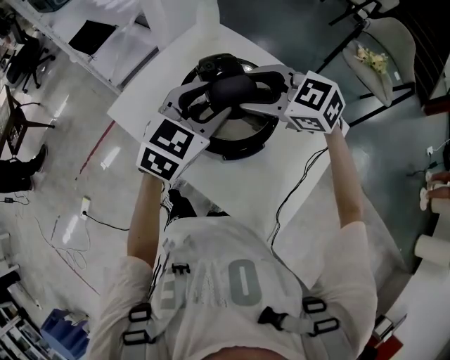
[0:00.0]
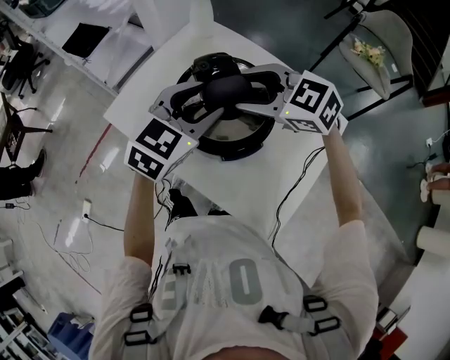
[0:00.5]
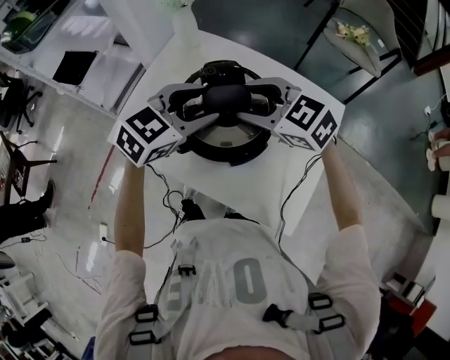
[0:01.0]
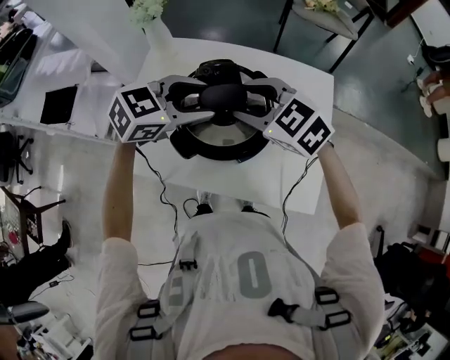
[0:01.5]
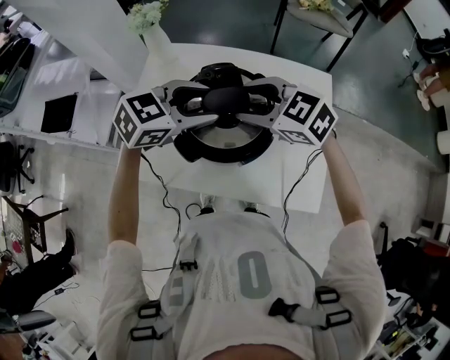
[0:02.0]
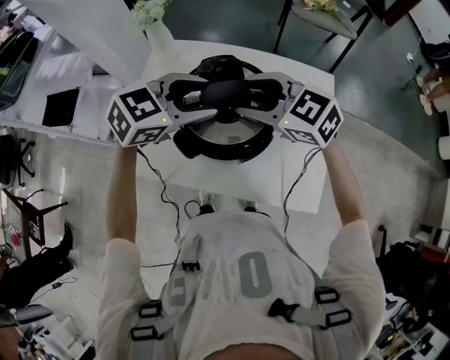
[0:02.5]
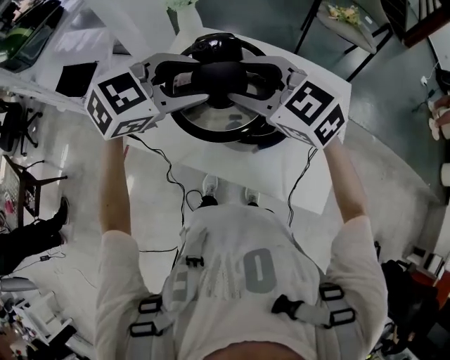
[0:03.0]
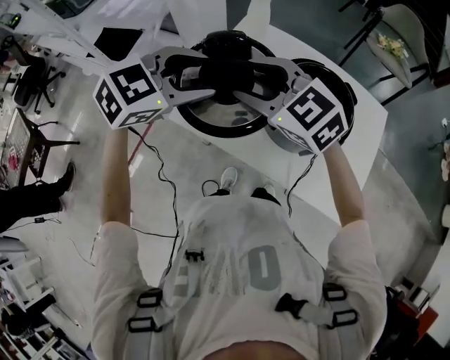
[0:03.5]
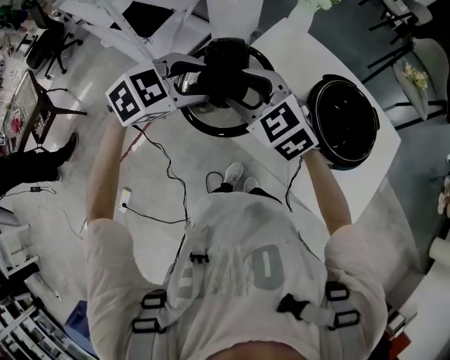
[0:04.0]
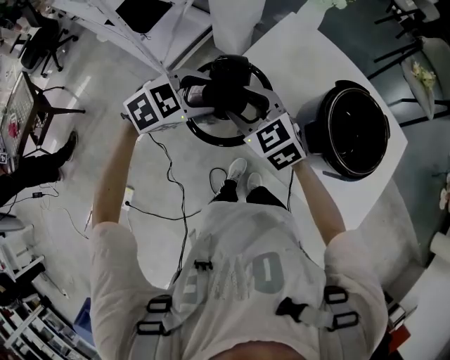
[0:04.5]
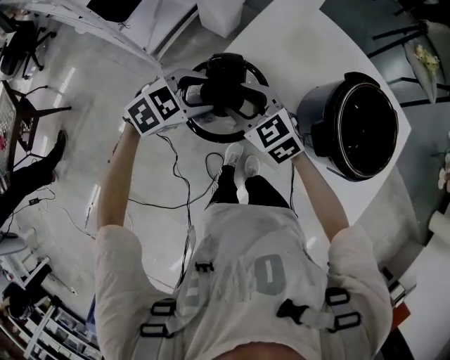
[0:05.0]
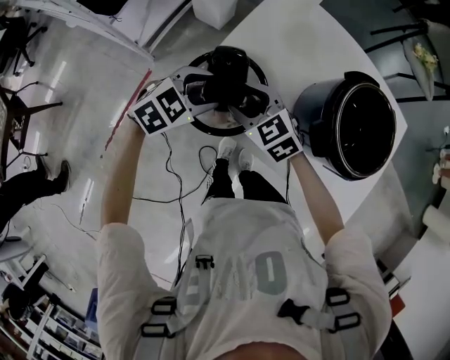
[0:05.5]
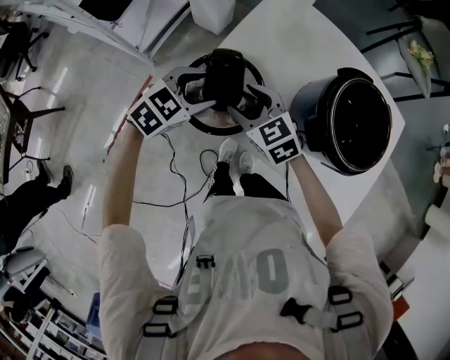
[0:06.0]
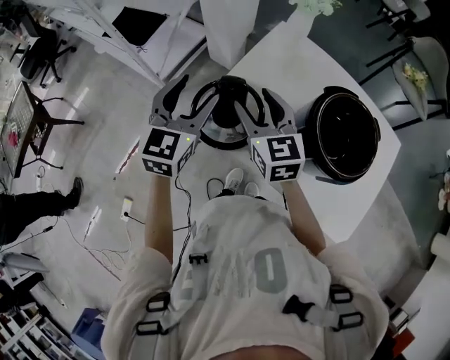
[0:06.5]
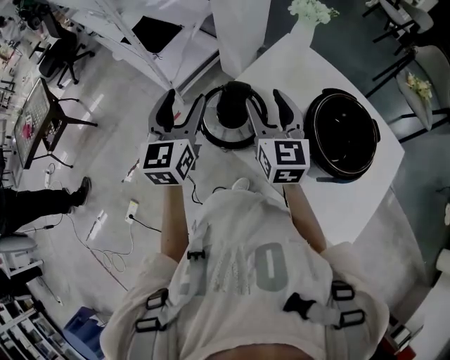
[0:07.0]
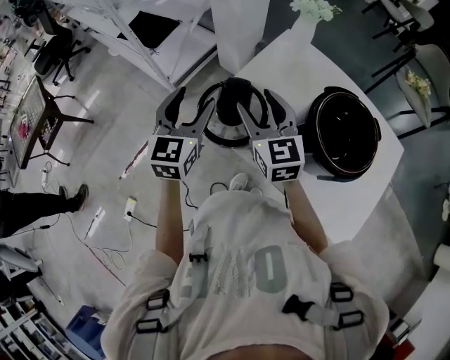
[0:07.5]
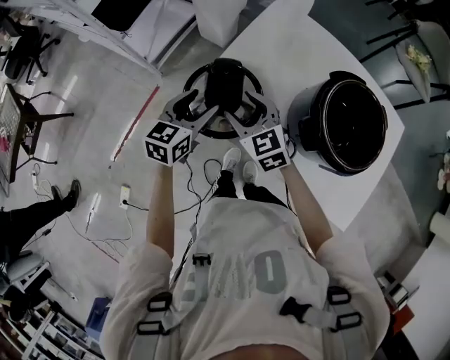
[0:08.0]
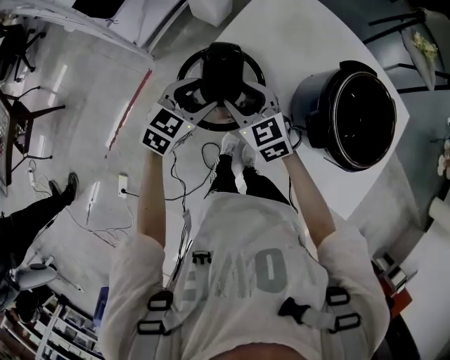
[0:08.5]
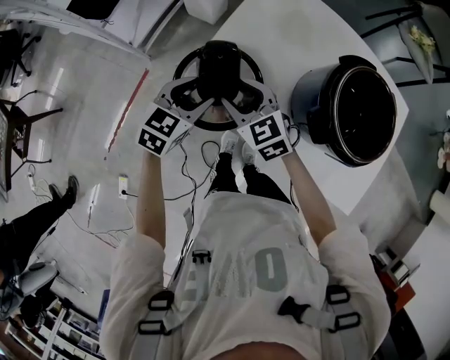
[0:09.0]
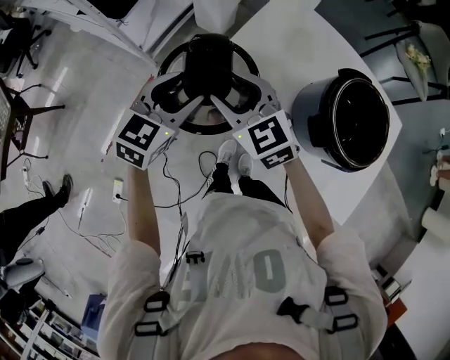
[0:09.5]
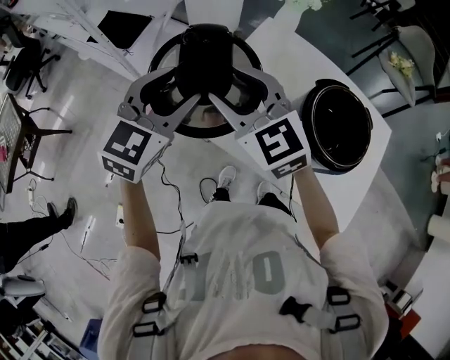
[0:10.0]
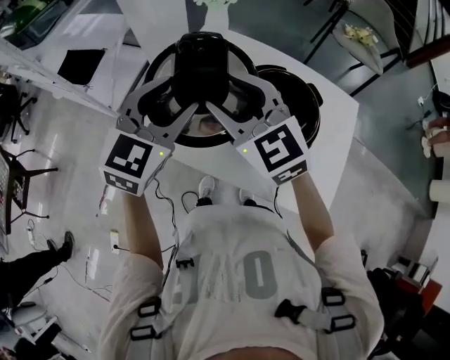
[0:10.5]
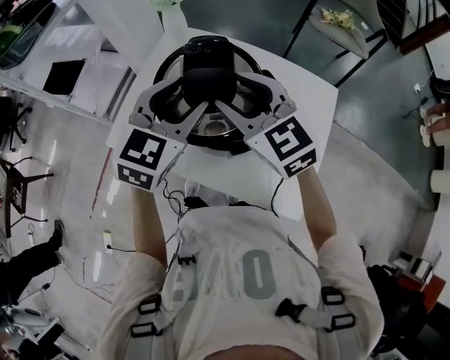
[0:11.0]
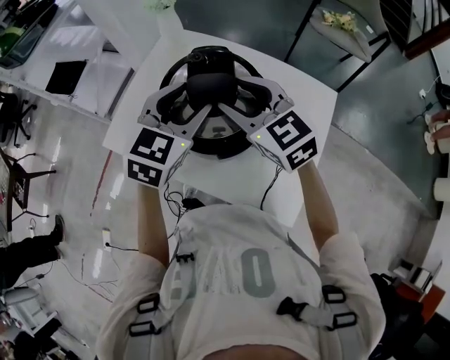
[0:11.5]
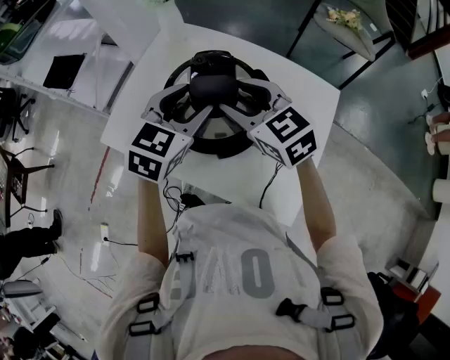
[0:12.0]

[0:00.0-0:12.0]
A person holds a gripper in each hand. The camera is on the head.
0:00.0 to 0:02.0: The left gripper swivels approximately 50 degrees. The right gripper changes its angle by roughly 30 degrees.
0:02.0 to 0:04.0: The left gripper reaches approximately 5 cm upward, then returns, and turns by some 30 degrees, while the right gripper travels upward and back again, about 5 cm each way.
0:04.0 to 0:06.0: The grippers both shift downward by approximately 15 cm. The right gripper changes its angle by about 20 degrees.
0:06.0 to 0:08.0: The right gripper reaches roughly 20 cm upward, then returns. The left gripper moves roughly 20 cm upward and comes back, and rotates roughly 40 degrees.
0:08.0 to 0:10.0: The grippers both shift upward by some 20 cm. The left gripper turns by about 30 degrees.
0:10.0 to 0:12.0: The grippers both shift to the right by approximately 40 cm.

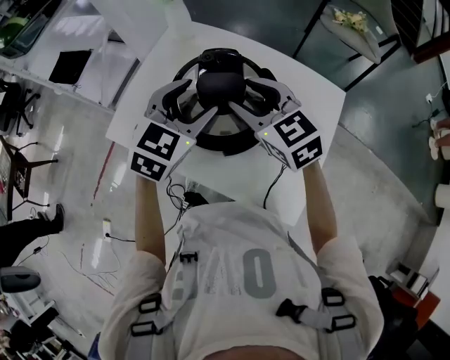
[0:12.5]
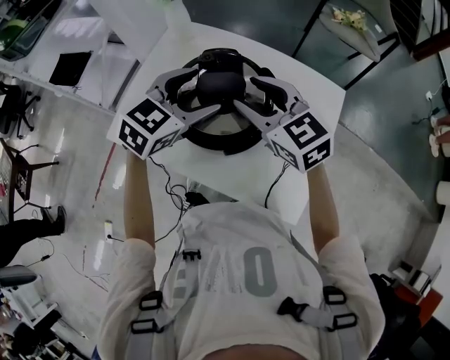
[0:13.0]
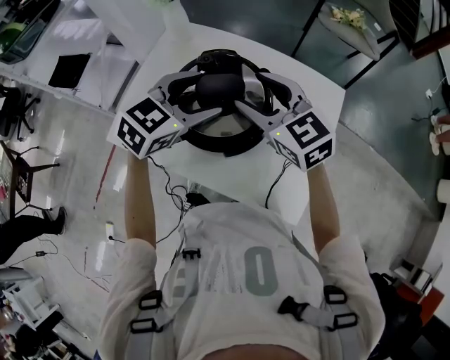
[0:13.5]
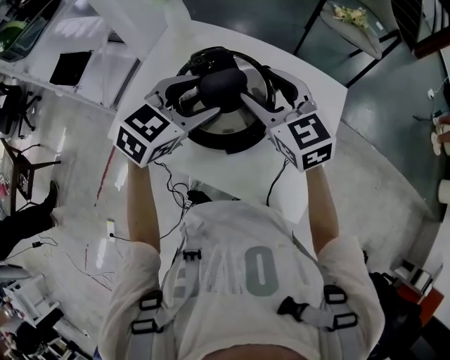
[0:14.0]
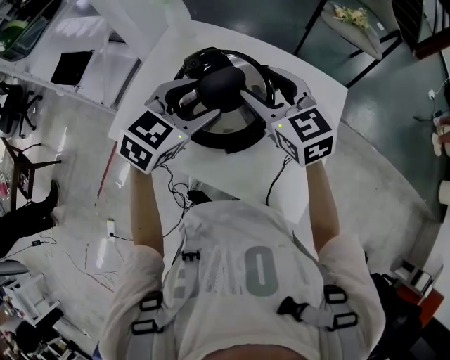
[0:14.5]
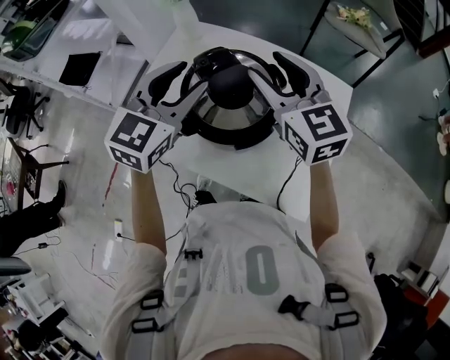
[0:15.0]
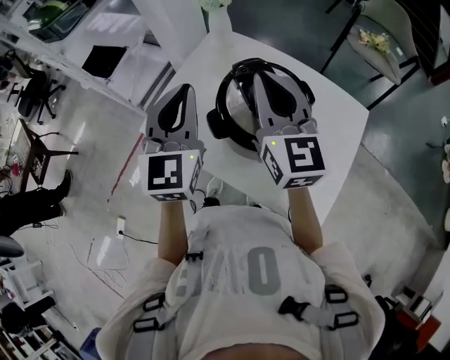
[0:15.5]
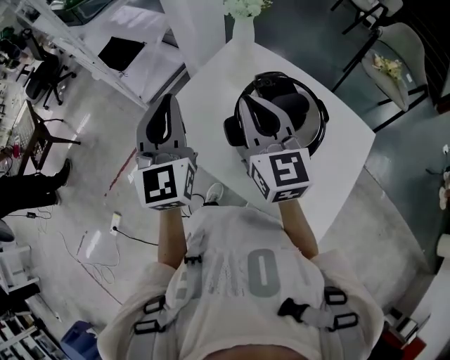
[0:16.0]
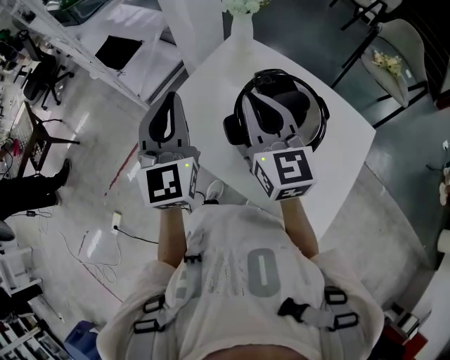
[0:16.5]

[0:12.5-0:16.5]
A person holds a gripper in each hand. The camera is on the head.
0:12.5 to 0:14.5: The grippers stay close to where they were, moving slightly.
0:14.5 to 0:16.5: The left gripper changes place by about 25 cm, points its fingers some 40 degrees further upward, and closes its fingers. Meanwhile the right gripper moves some 20 cm, and closes up.

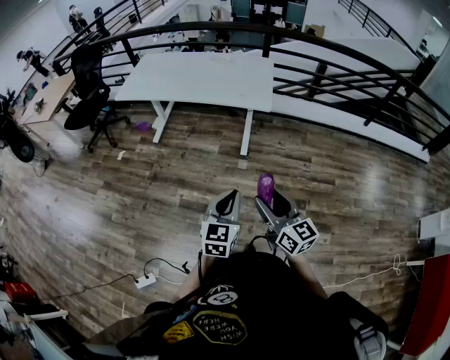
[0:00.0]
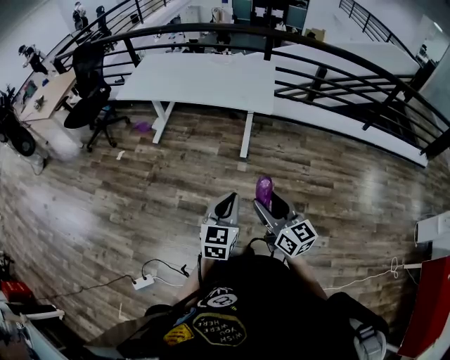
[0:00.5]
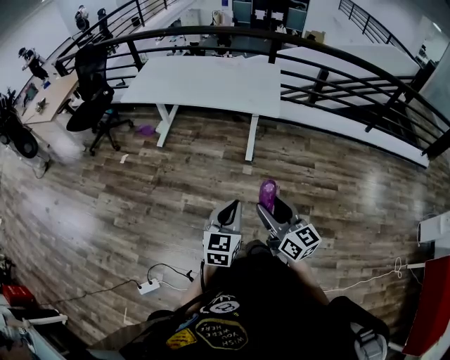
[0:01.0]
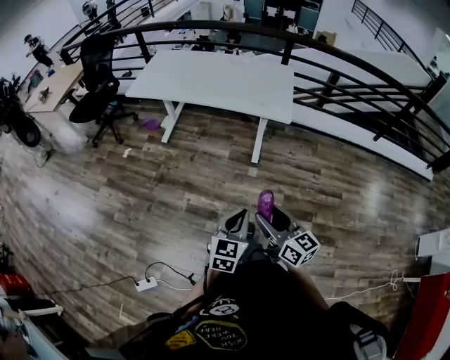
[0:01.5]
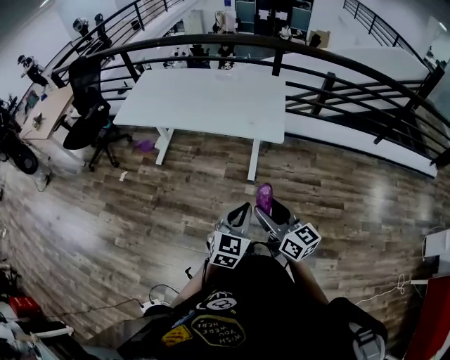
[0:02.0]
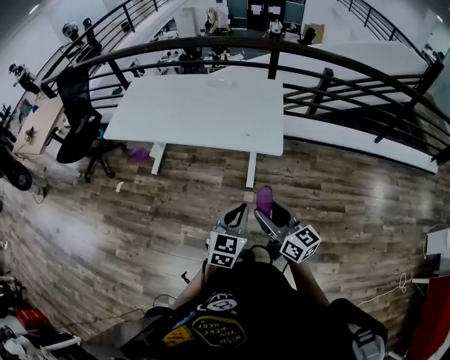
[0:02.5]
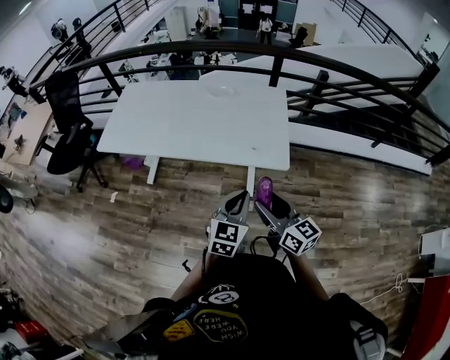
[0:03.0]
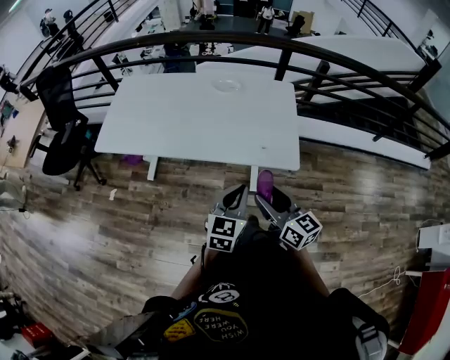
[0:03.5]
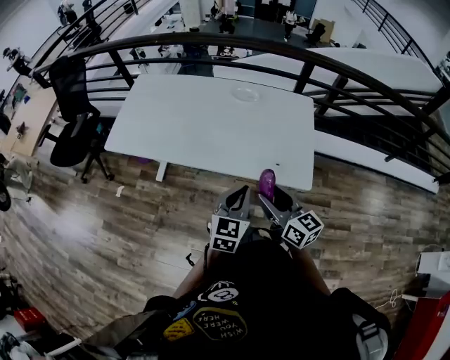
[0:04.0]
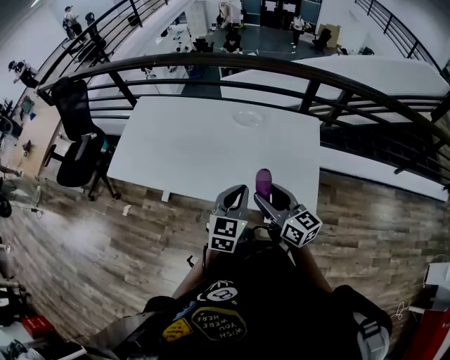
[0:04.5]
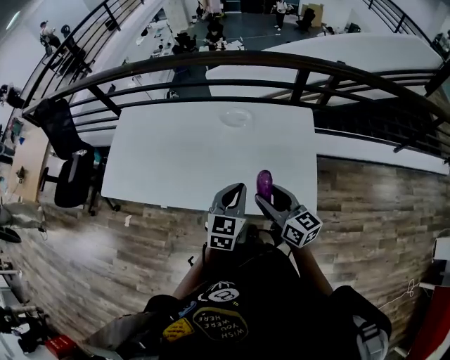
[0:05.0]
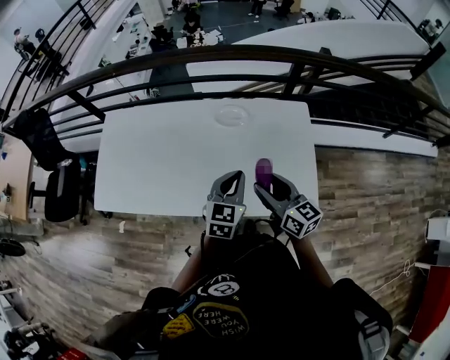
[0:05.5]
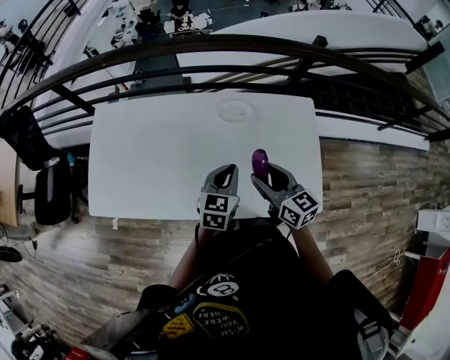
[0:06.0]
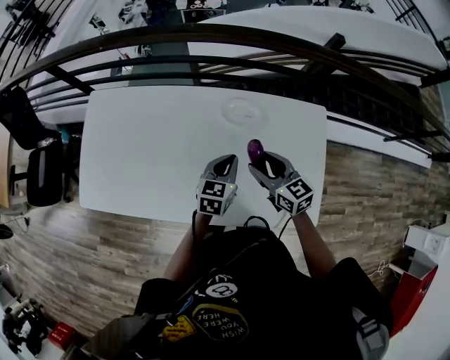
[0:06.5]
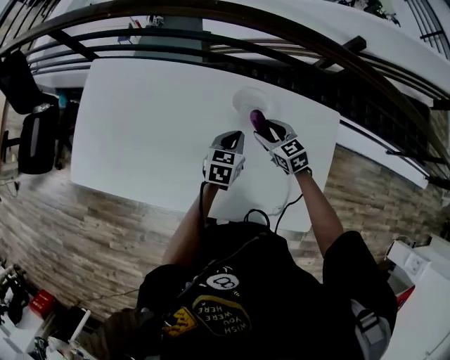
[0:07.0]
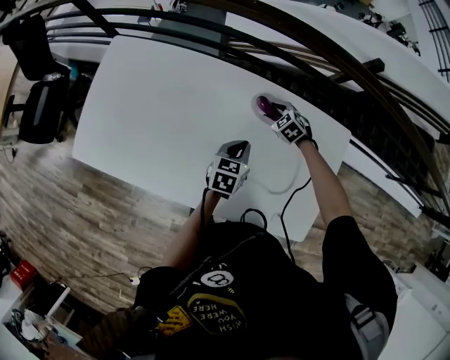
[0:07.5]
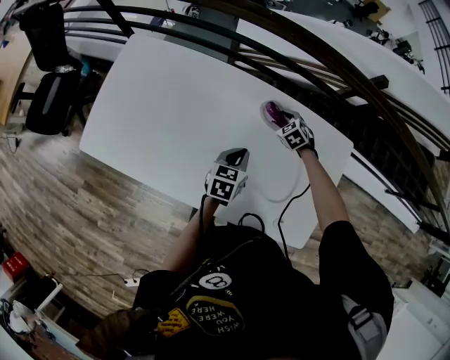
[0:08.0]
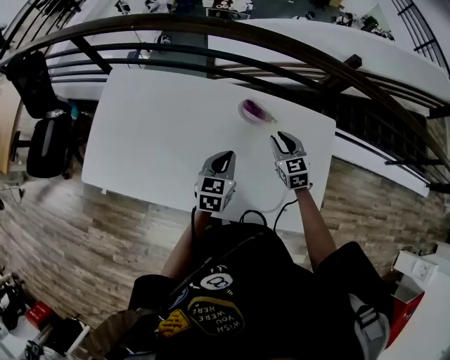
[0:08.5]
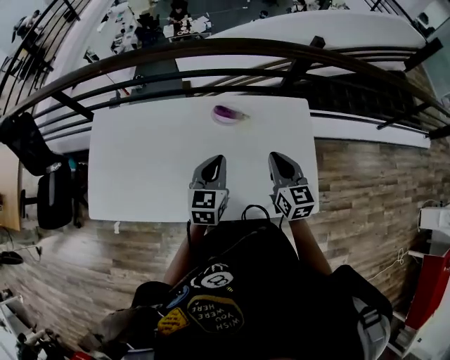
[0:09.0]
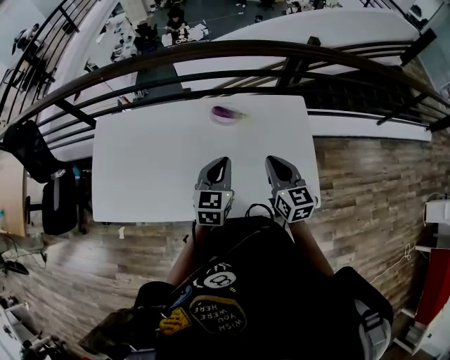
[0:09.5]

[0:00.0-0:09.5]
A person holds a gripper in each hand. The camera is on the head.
0:00.0 to 0:02.0: The two grippers go about 20 cm forward.
0:02.0 to 0:04.0: Both grippers are carried forward, roughly 40 cm.
0:04.0 to 0:05.5: The two grippers go some 25 cm forward.
0:05.5 to 0:07.5: The left gripper heads forward and downward, covering approximately 25 cm, and swivels approximately 30 degrees, while the right gripper goes approximately 50 cm forward and downward, and points its fingers approximately 50 degrees further downward.
0:07.5 to 0:09.5: The right gripper shifts about 40 cm upward and backward, angles its fingers upward, by about 40 degrees, and closes its fingers. The left gripper is displaced upward and backward by some 20 cm, and changes its angle by some 30 degrees.

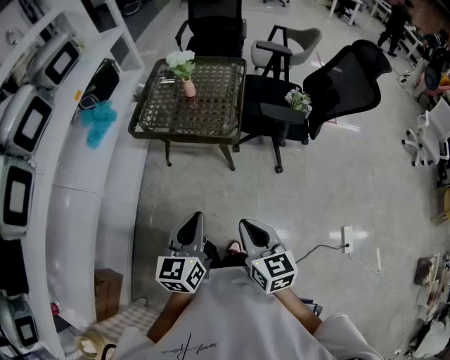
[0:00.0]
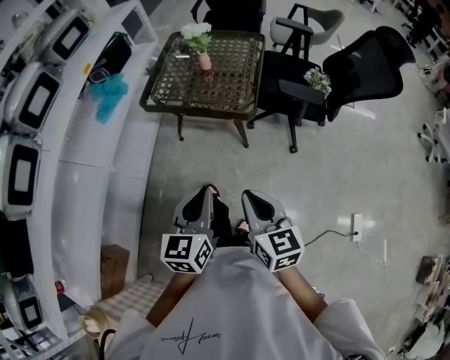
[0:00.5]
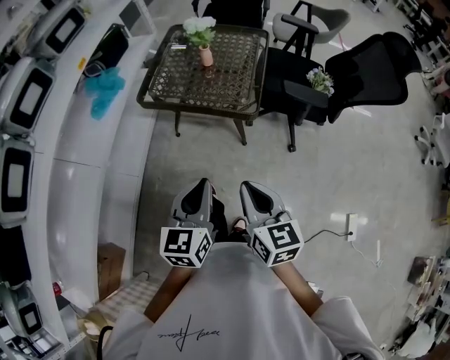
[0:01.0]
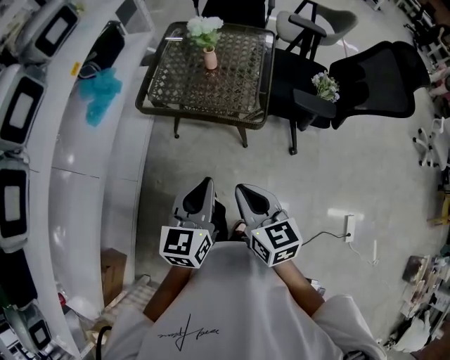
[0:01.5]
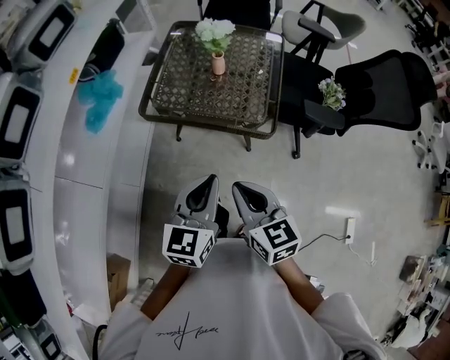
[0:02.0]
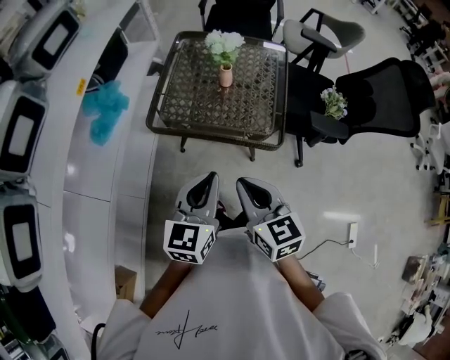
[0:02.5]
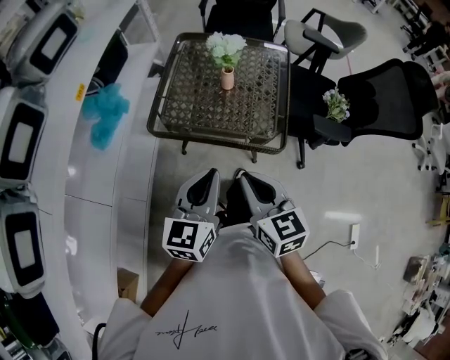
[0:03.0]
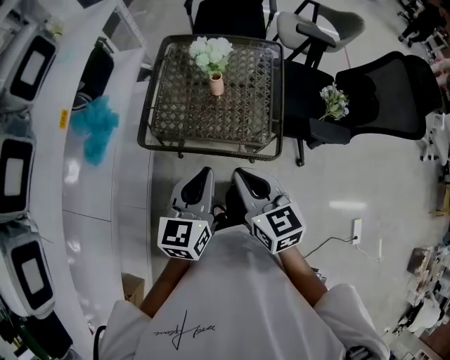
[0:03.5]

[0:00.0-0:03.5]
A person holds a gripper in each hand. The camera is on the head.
0:00.0 to 0:02.0: The right gripper moves forward and to the left, about 30 cm. The left gripper shifts about 25 cm forward.
0:02.0 to 0:03.5: The grippers both shift forward by roughly 15 cm.
